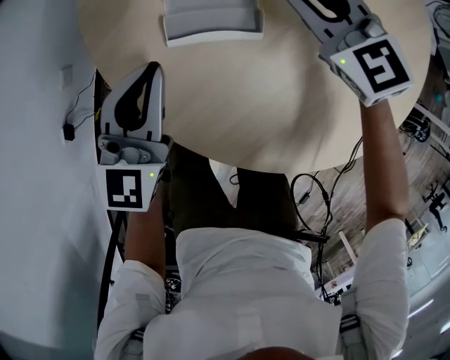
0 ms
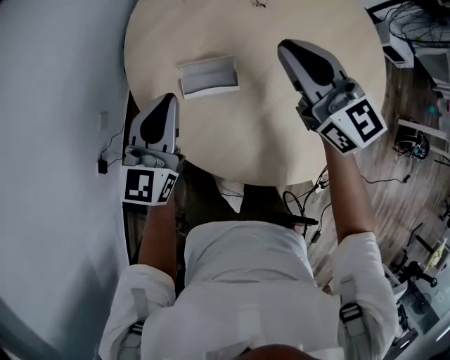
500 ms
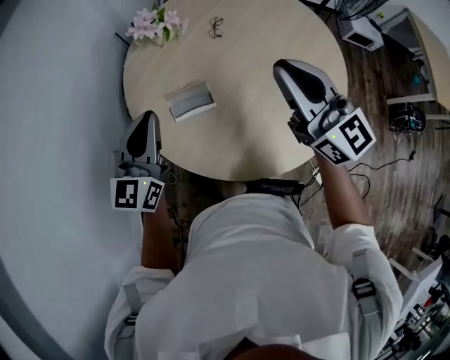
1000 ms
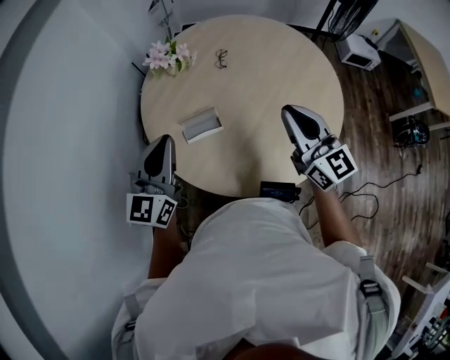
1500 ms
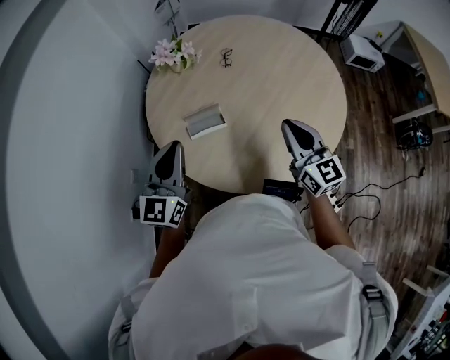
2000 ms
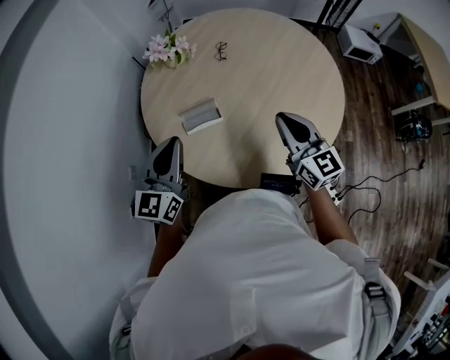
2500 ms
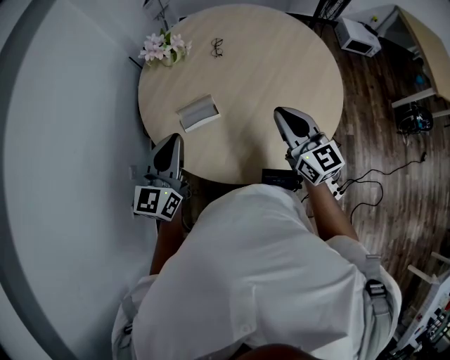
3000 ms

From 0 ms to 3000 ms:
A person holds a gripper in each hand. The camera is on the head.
From 0 ms to 1500 ms: The right gripper goes some 40 cm upward, backward and to the right, and points its fingers some 30 degrees further upward; the left gripper moves upward, some 30 cm.
From 1500 ms to 3000 ms: The right gripper heads downward, covering roughly 5 cm; the left gripper shifts by some 5 cm.

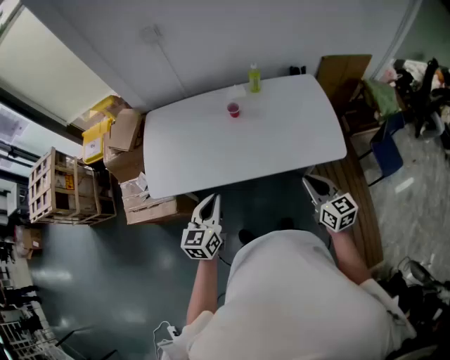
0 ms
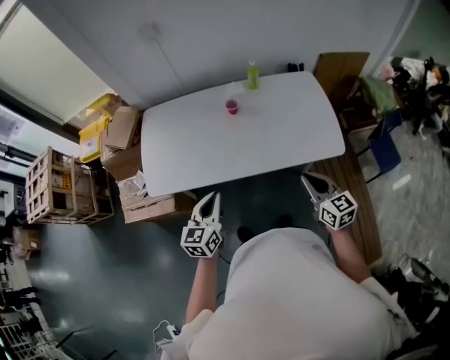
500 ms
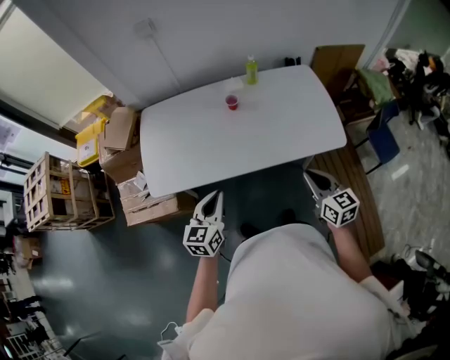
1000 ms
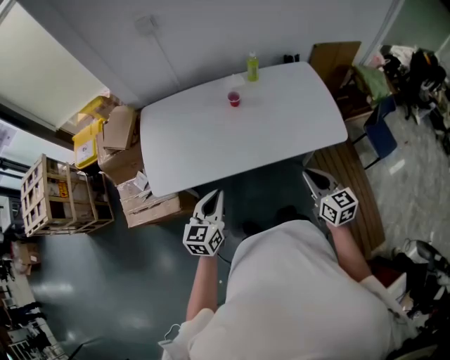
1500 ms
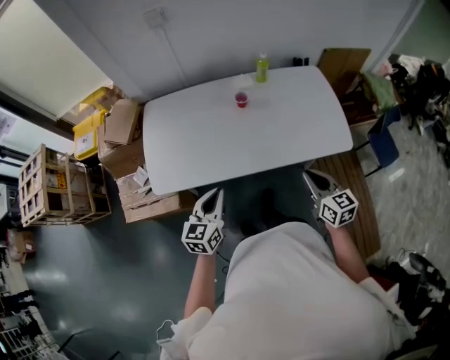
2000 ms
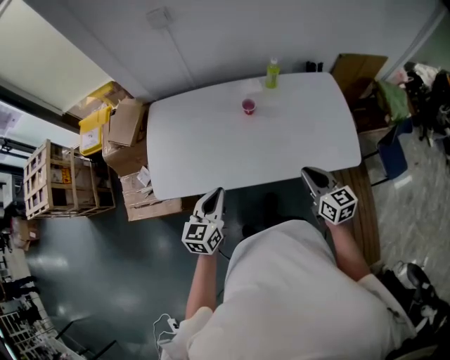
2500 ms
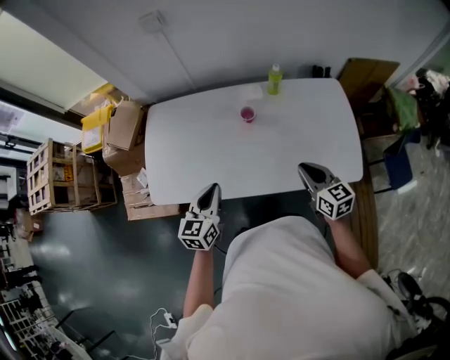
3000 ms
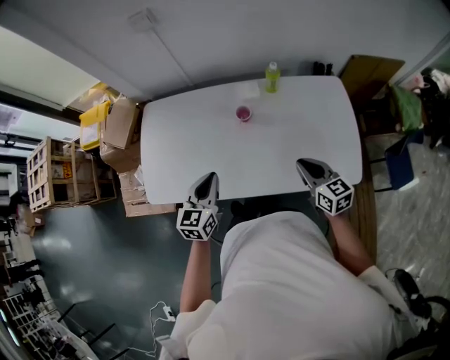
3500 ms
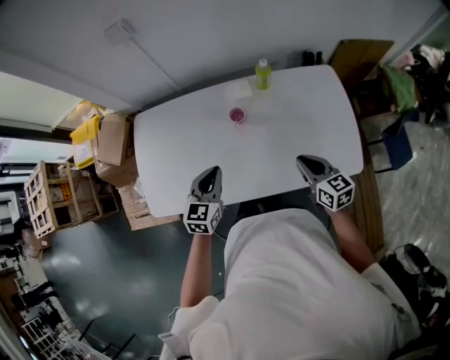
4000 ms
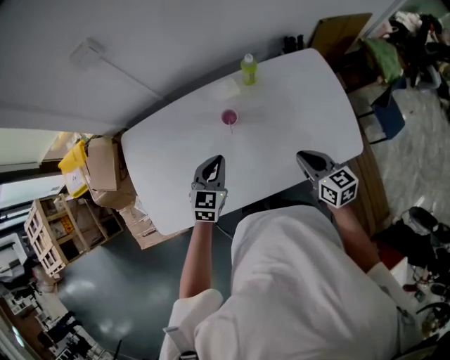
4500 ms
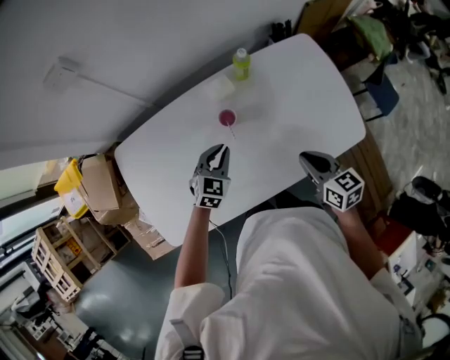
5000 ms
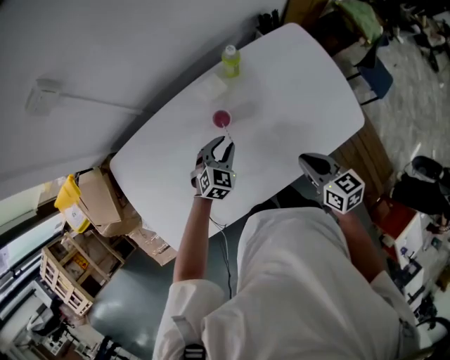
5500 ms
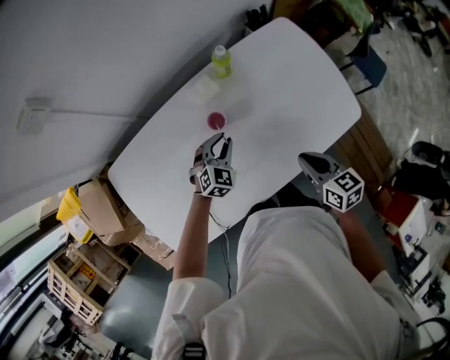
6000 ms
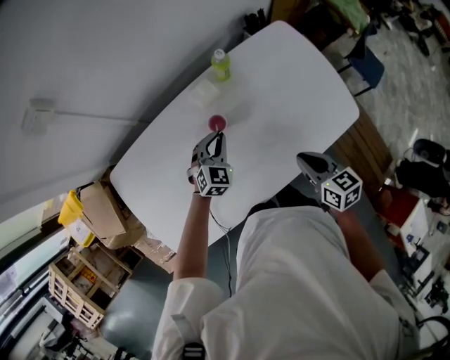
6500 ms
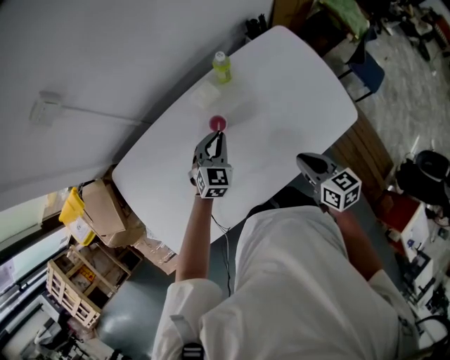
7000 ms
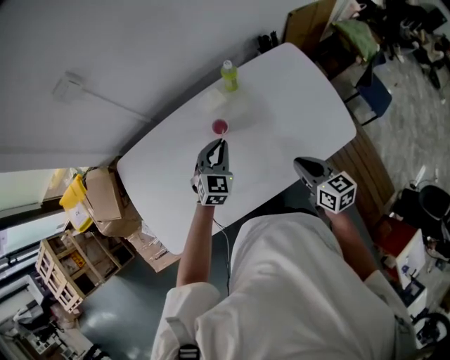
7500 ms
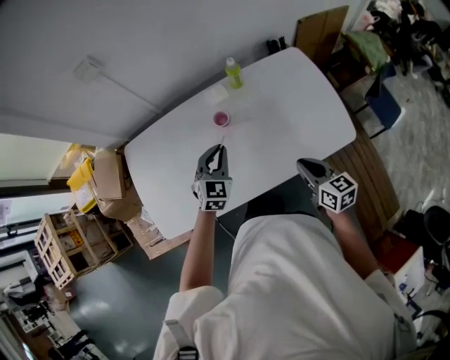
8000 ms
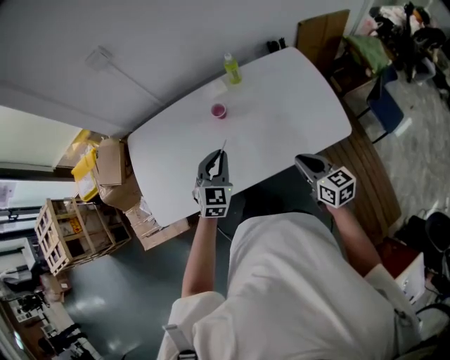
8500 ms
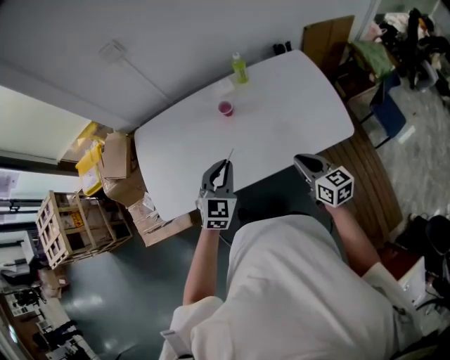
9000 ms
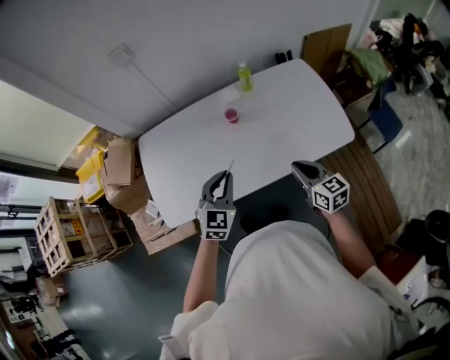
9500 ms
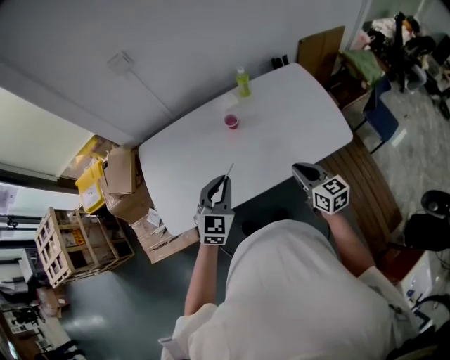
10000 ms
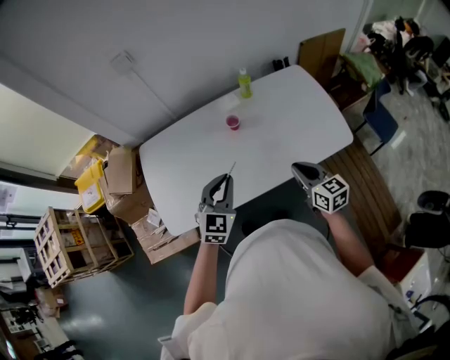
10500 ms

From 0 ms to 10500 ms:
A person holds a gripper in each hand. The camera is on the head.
From 0 ms to 2000 ms: The two grippers go approximately 5 cm to the left.
From 2000 ms to 4000 ms: The grippers both shift forward by about 20 cm.
From 4000 ms to 6500 ms: The left gripper heads forward and downward, covering approximately 25 cm, swivels some 40 degrees, and opens, then closes once more; the right gripper changes its angle by some 30 degrees.
From 6500 ms to 8500 ms: The right gripper shifts approximately 15 cm backward and to the right, while the left gripper heads backward and upward, covering about 25 cm, and rotates some 20 degrees.
From 8500 ms to 10500 ms: The left gripper goes roughly 10 cm to the left, backward and upward; the right gripper is displaced to the left by roughly 10 cm.

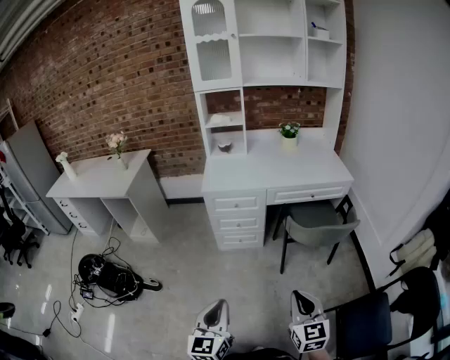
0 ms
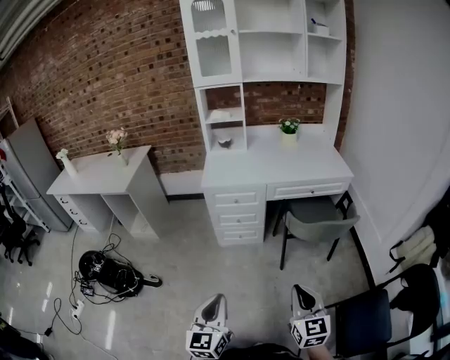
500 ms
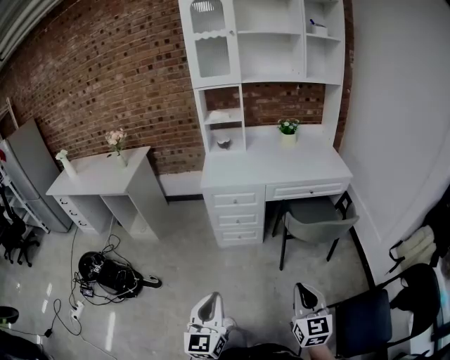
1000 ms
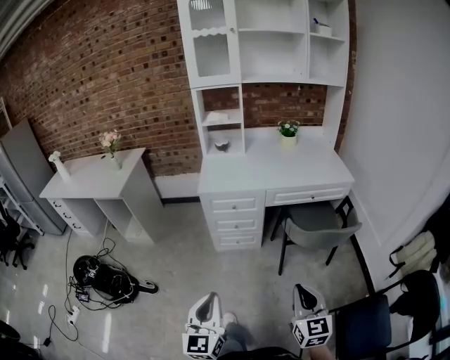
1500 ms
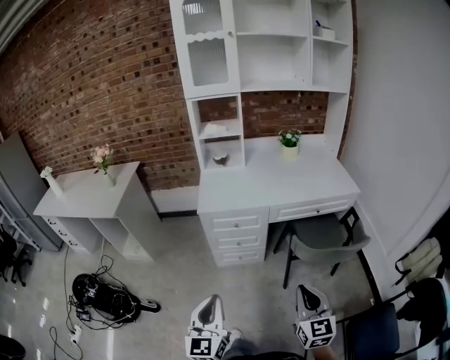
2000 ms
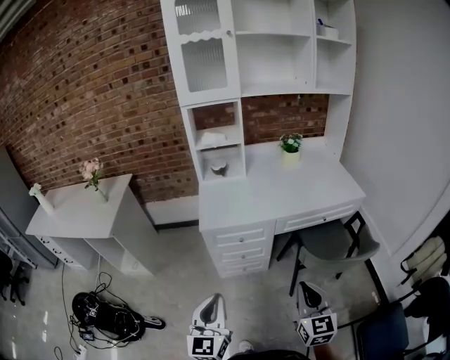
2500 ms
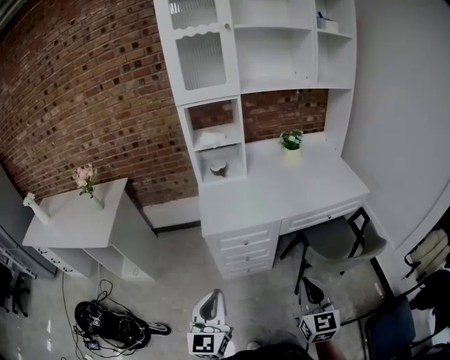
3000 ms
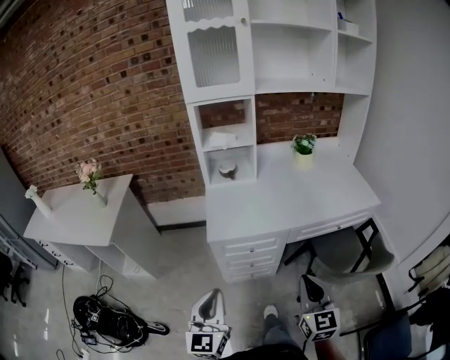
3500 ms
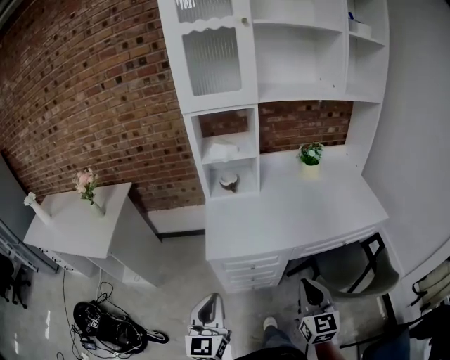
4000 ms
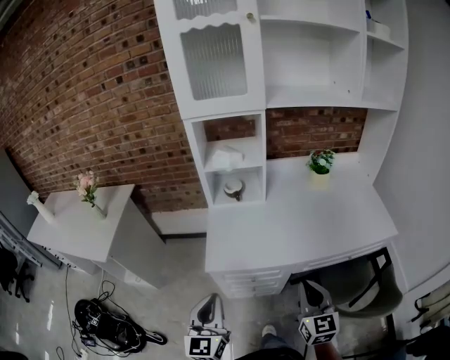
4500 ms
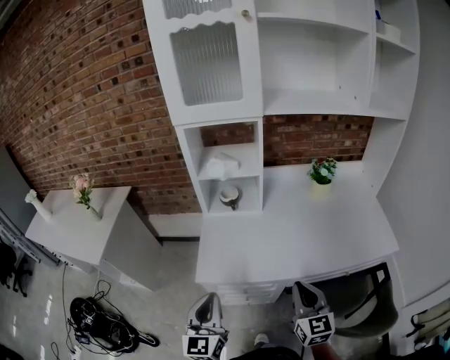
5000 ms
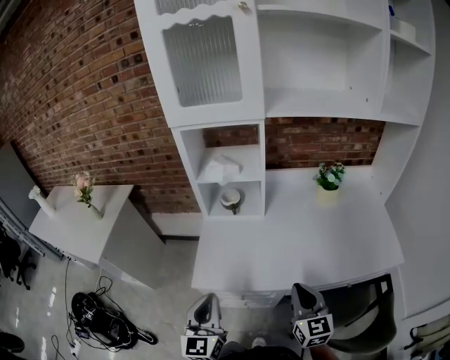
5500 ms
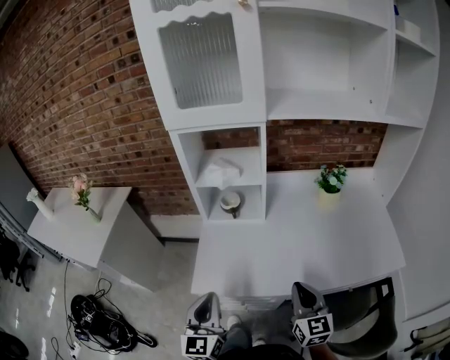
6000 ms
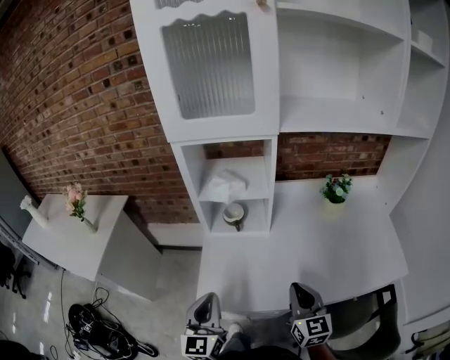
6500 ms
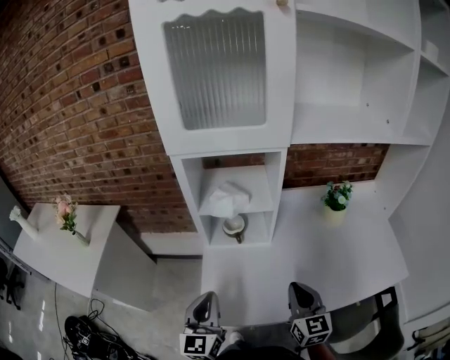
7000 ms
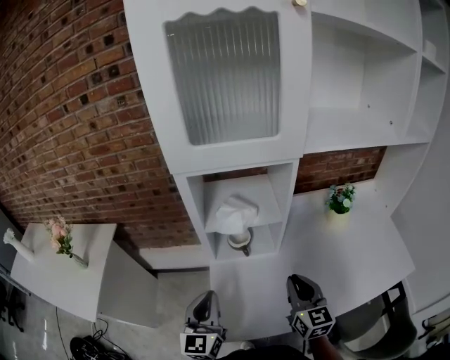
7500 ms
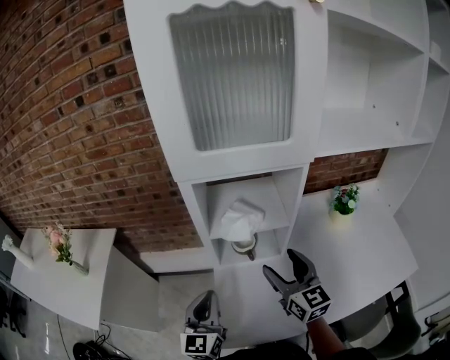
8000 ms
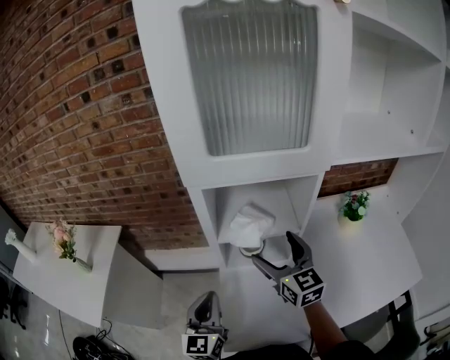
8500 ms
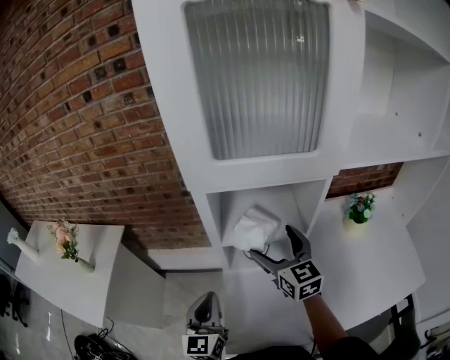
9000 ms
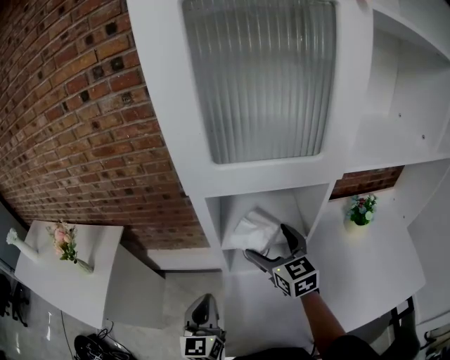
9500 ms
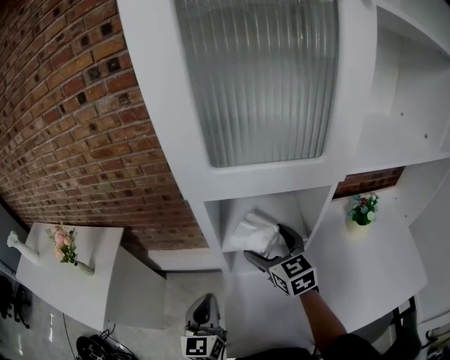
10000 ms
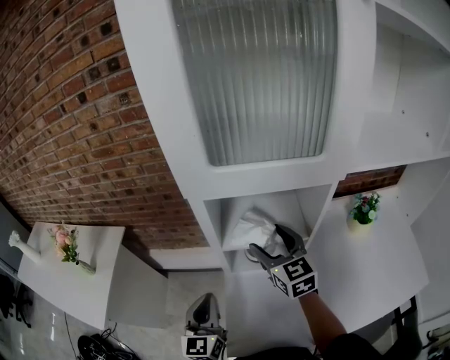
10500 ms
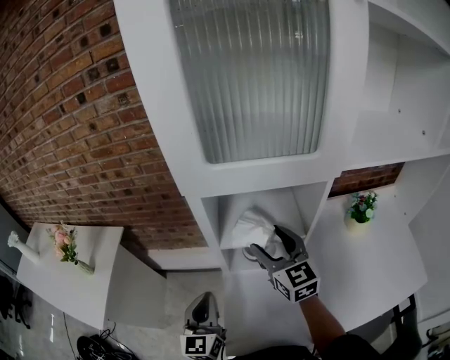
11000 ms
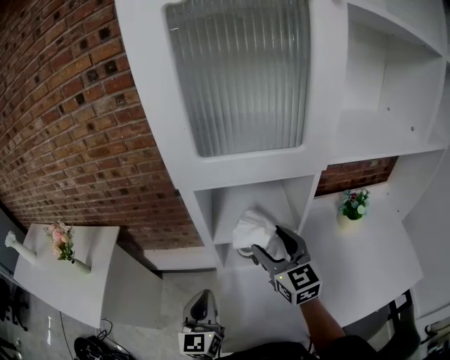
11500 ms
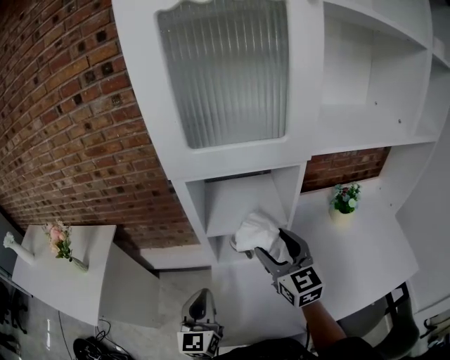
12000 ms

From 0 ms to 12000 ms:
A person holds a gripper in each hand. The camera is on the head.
From 0 ms to 2000 ms: The grippers both shift forward by some 15 cm.
From 2000 ms to 4000 ms: The grippers both shift forward by roughly 30 cm.
From 4000 ms to 6000 ms: The two grippers go about 20 cm forward.
From 6000 ms to 8000 ms: Both grippers travel together forward and to the left, about 25 cm. The right gripper opens.
From 8000 ms to 10000 ms: The right gripper is displaced forward by roughly 15 cm; the left gripper changes place by about 5 cm.
From 10000 ms to 12000 ms: The right gripper moves backward, some 10 cm, and closes its fingers.

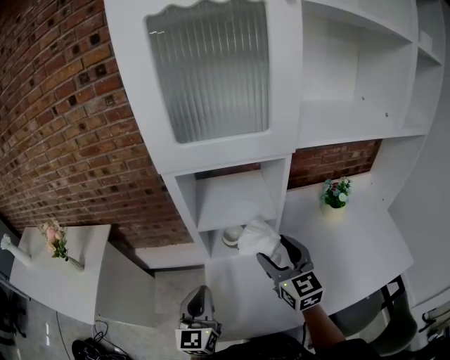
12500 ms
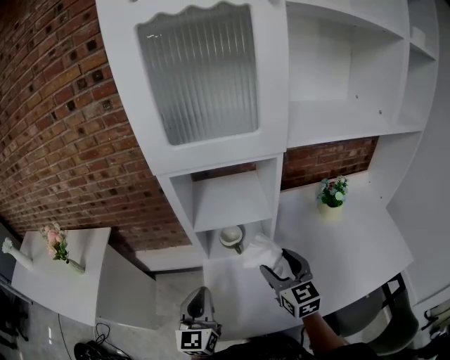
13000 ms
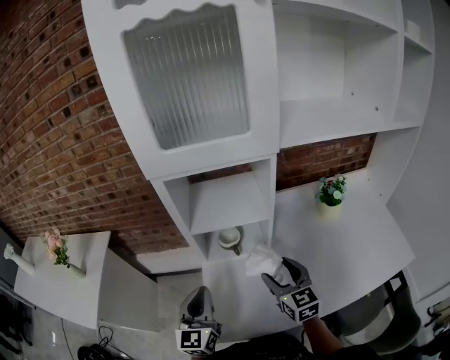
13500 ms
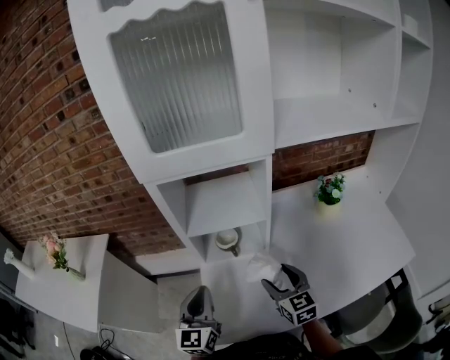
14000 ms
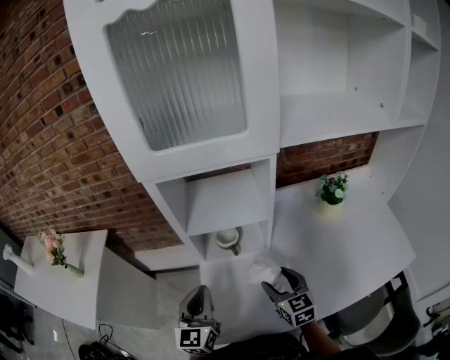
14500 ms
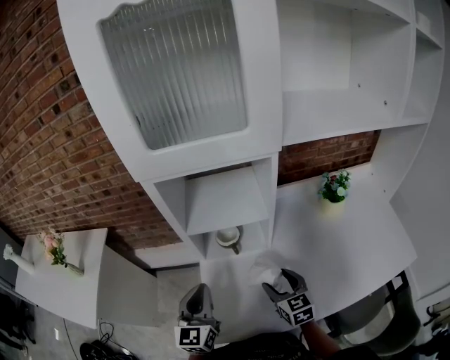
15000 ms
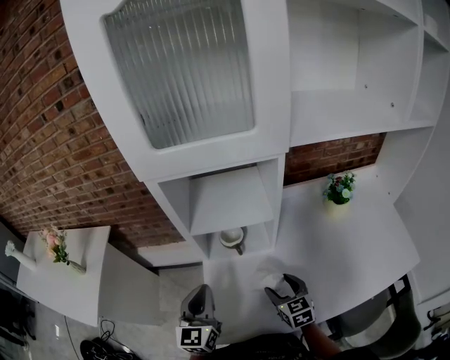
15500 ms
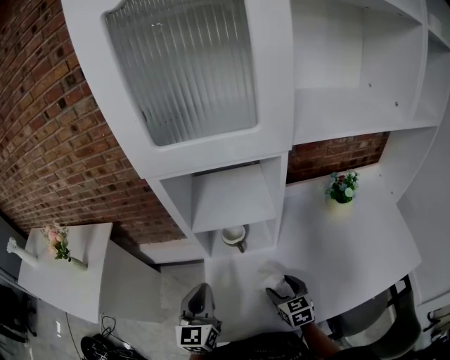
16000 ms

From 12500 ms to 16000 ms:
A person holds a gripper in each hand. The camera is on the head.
From 12500 ms to 14500 ms: The right gripper goes approximately 15 cm downward.
From 14500 ms to 16000 ms: The right gripper goes about 5 cm downward.
